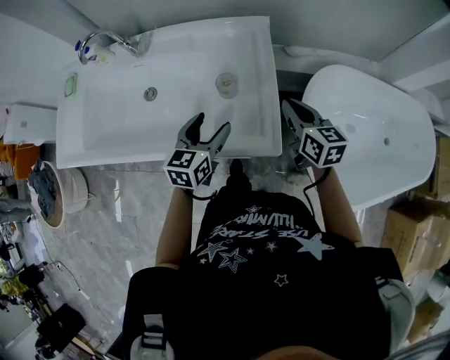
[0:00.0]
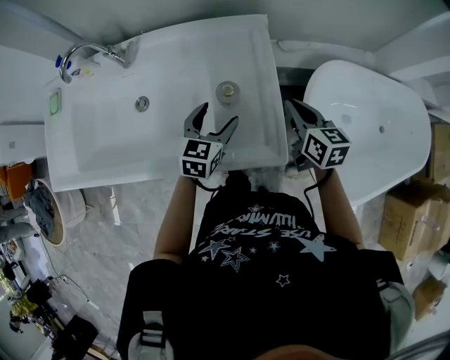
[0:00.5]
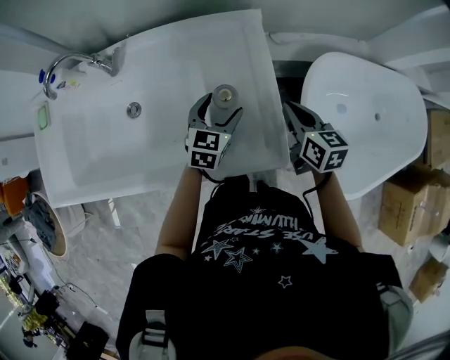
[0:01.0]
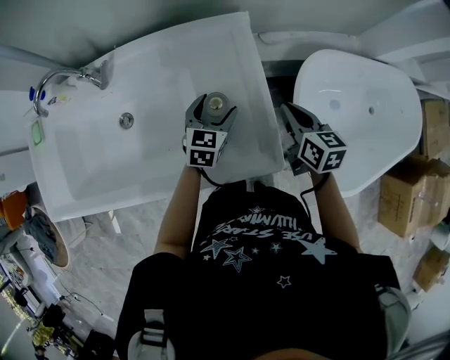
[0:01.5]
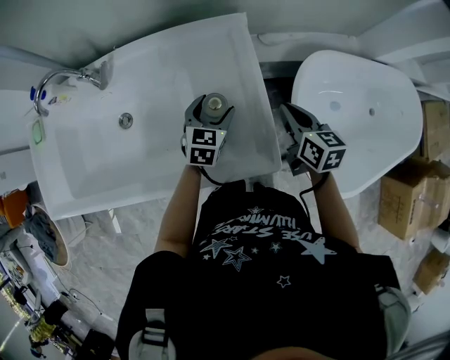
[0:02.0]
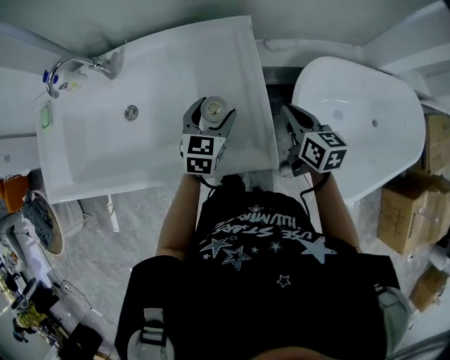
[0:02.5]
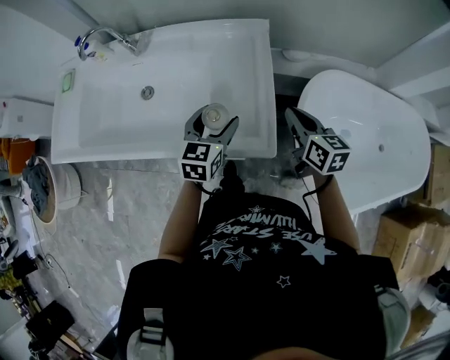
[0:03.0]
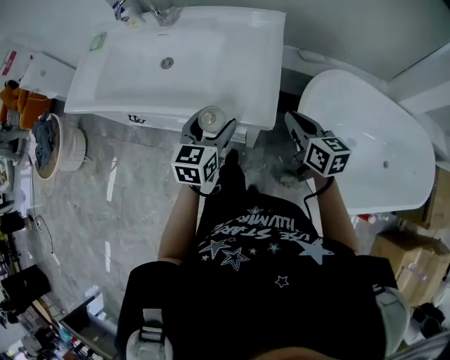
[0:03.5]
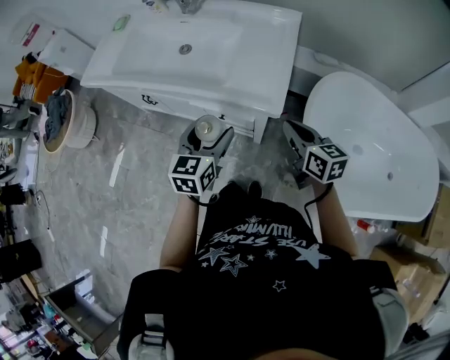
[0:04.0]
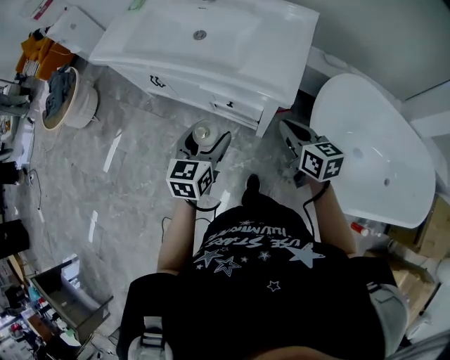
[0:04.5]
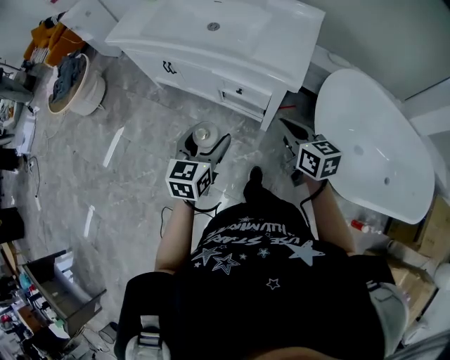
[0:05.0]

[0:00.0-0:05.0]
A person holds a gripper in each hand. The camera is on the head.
0:00.0 to 0:02.5: The left gripper heads forward, covering some 10 cm.
0:02.5 to 0:05.0: The right gripper moves roughly 40 cm, and changes its angle by approximately 40 degrees. The left gripper shifts by some 50 cm, and turns by approximately 30 degrees.

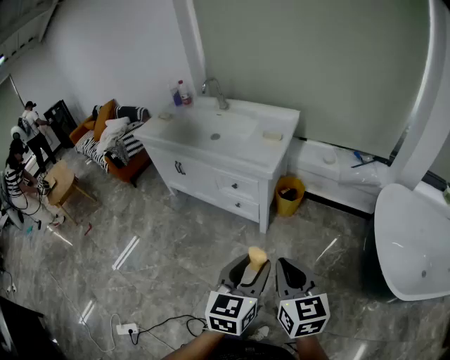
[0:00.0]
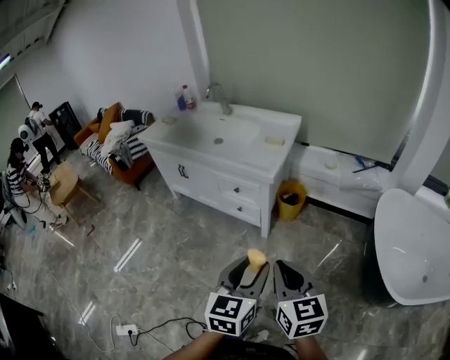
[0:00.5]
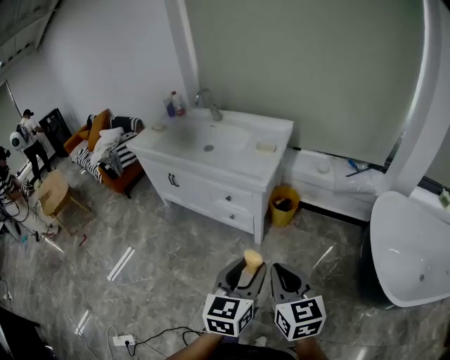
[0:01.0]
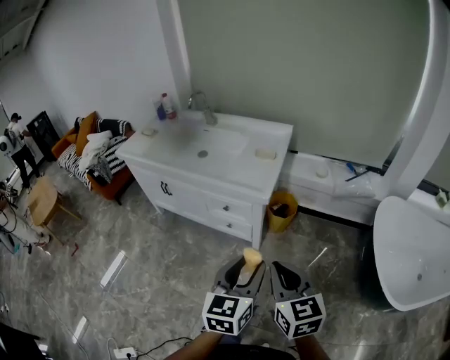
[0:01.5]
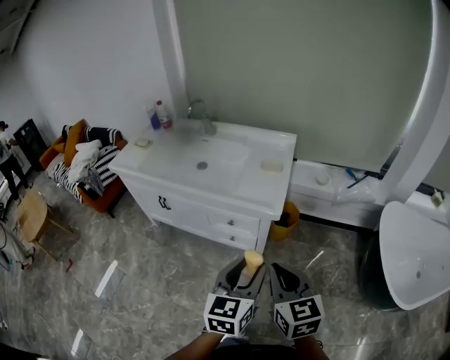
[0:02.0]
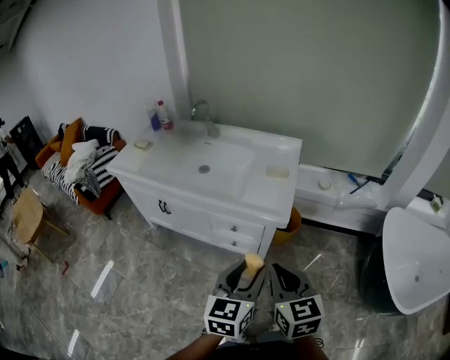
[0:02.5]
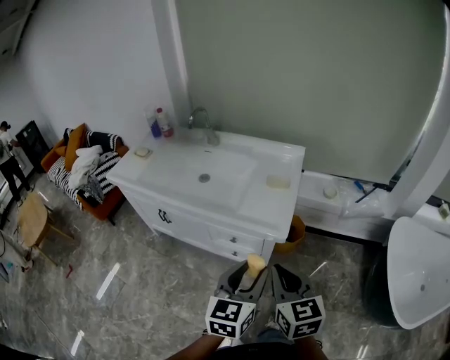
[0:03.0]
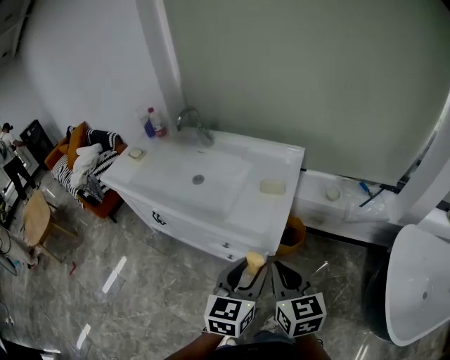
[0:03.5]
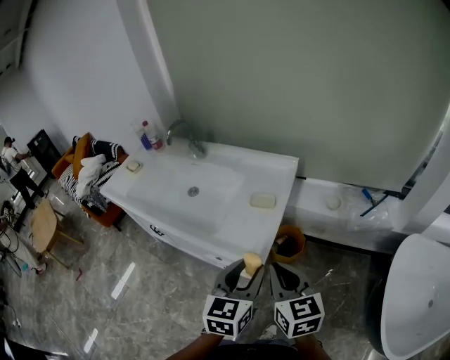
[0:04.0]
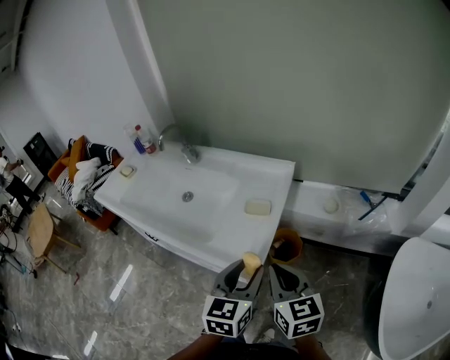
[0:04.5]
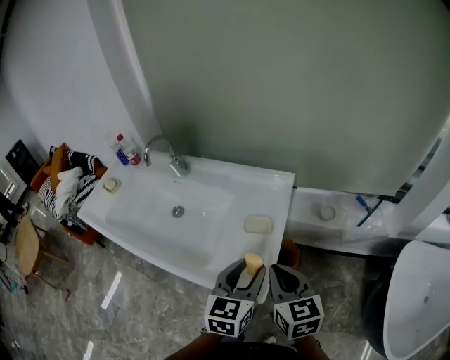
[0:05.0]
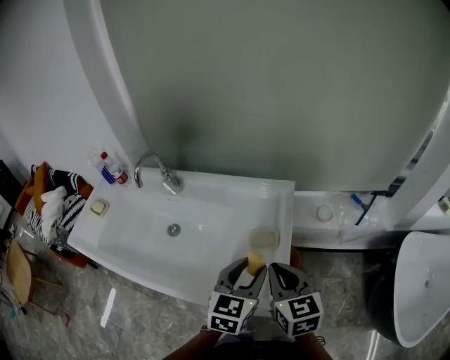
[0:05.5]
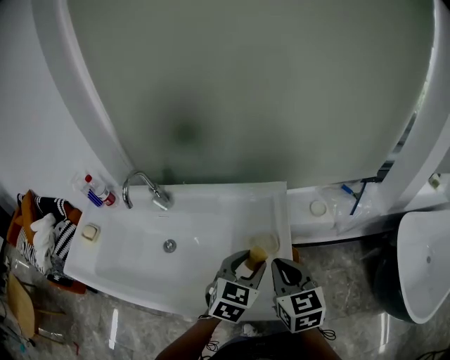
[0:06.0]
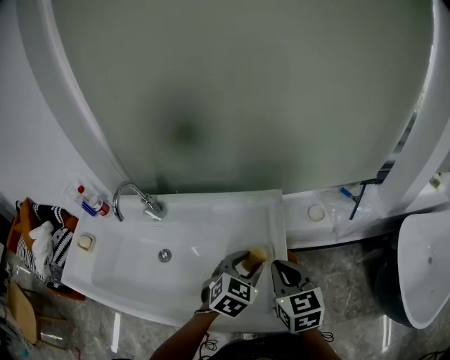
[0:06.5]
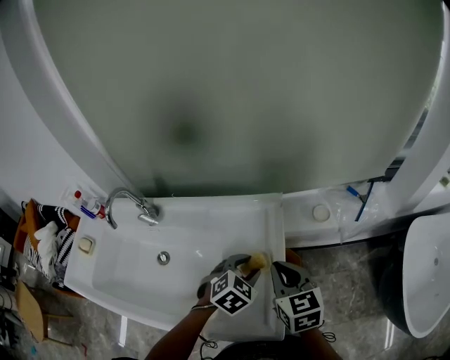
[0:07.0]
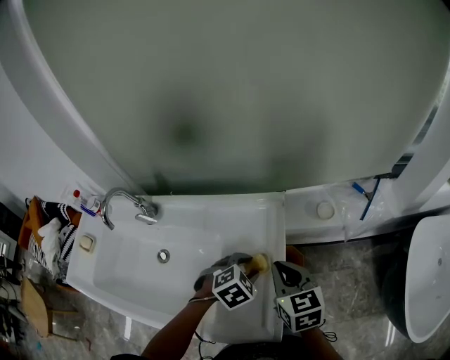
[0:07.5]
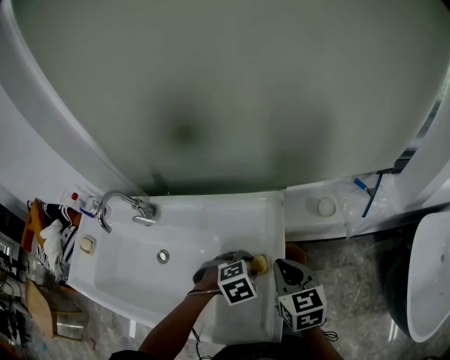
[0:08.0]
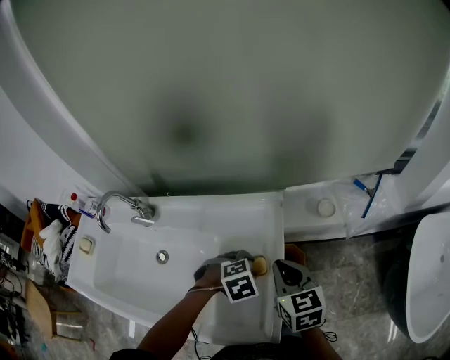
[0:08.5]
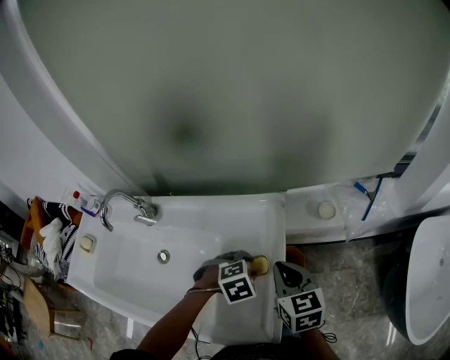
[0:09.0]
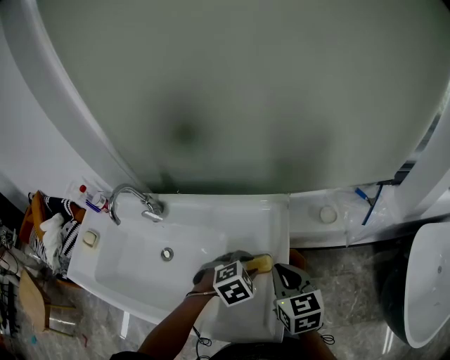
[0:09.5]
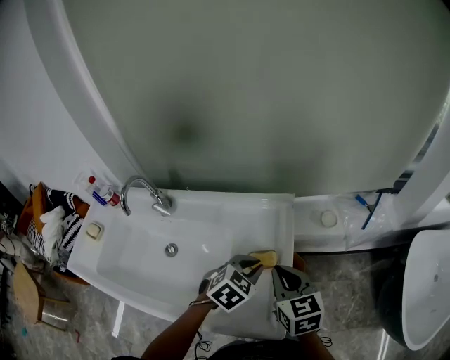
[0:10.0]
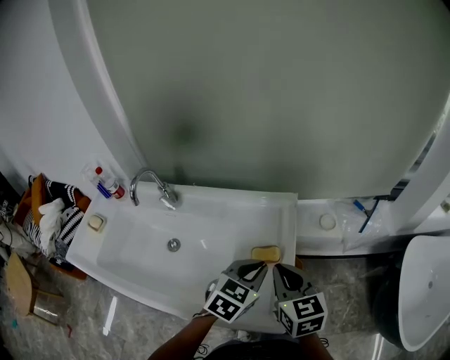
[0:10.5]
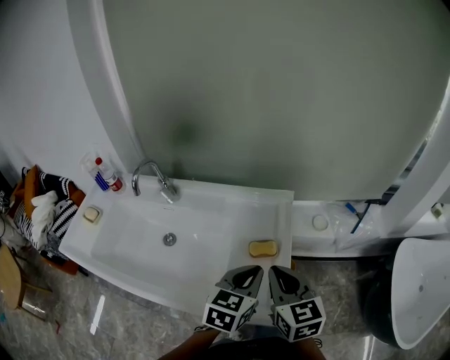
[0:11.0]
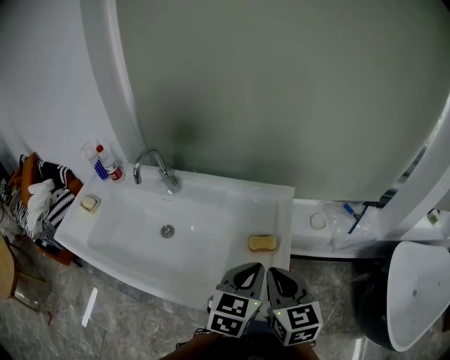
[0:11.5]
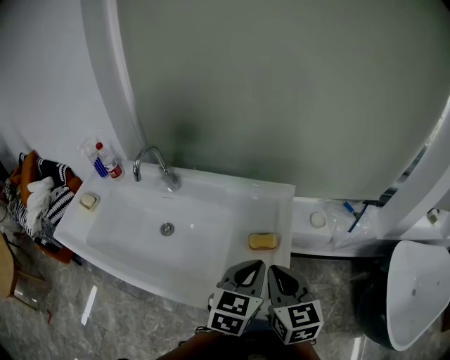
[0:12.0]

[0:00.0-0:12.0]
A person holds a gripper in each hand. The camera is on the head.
0:00.0 to 0:02.0: Both grippers move forward and to the left, approximately 20 cm.
0:02.0 to 0:04.0: The grippers both shift forward and to the right by about 25 cm.
0:04.0 to 0:06.0: Both grippers move forward, roughly 20 cm. The left gripper rotates approximately 40 degrees; the right gripper turns by approximately 20 degrees.
0:06.0 to 0:08.0: The left gripper is displaced downward and forward by approximately 15 cm, and angles its fingers downward, by roughly 40 degrees; the right gripper moves forward and downward, roughly 10 cm.
0:08.0 to 0:10.0: The right gripper changes place by roughly 5 cm. The left gripper moves upward, approximately 5 cm, swivels about 30 degrees, and closes.
0:10.0 to 0:12.0: The right gripper moves backward, about 10 cm. The left gripper is displaced backward and upward by approximately 10 cm, and rotates approximately 40 degrees.

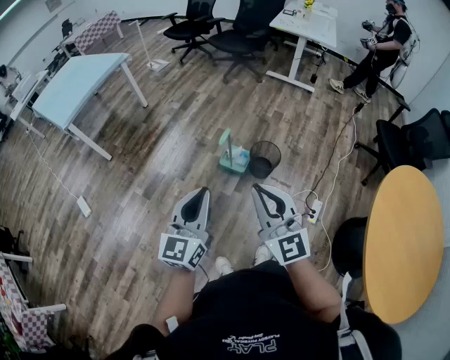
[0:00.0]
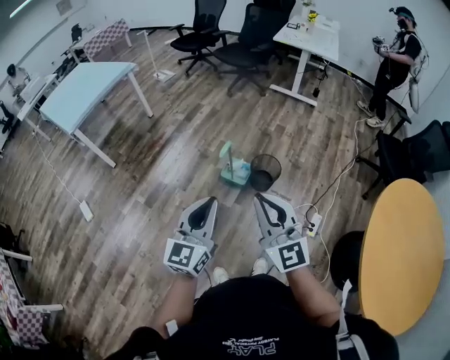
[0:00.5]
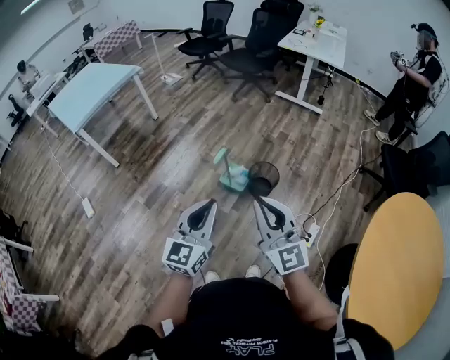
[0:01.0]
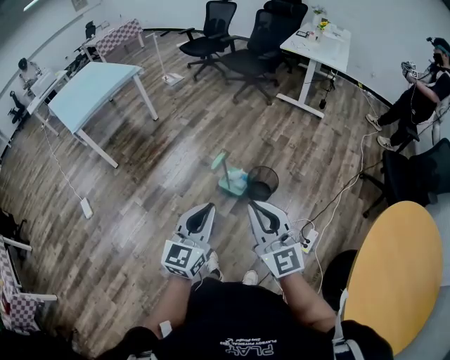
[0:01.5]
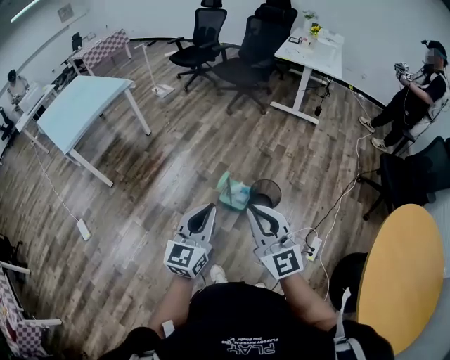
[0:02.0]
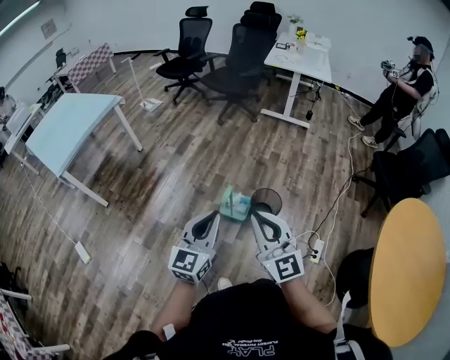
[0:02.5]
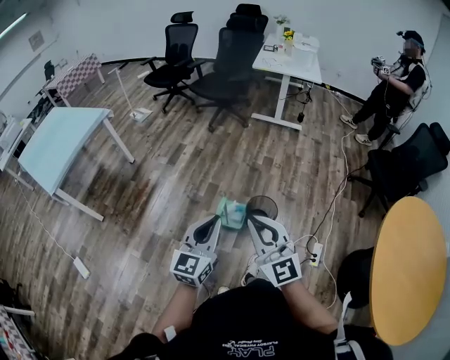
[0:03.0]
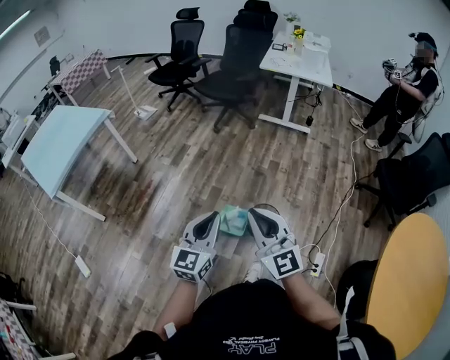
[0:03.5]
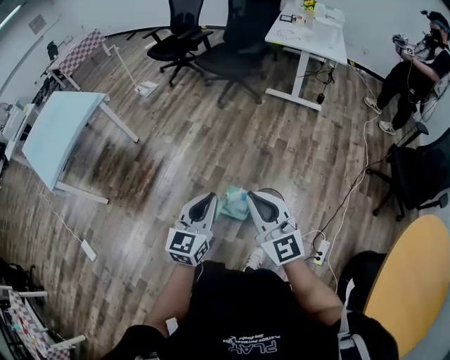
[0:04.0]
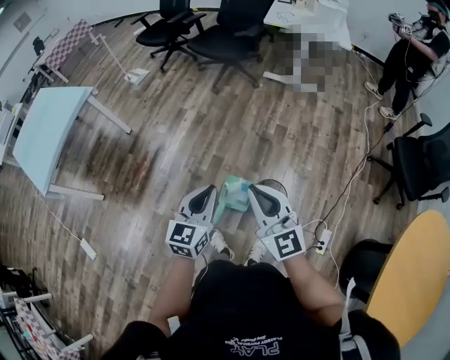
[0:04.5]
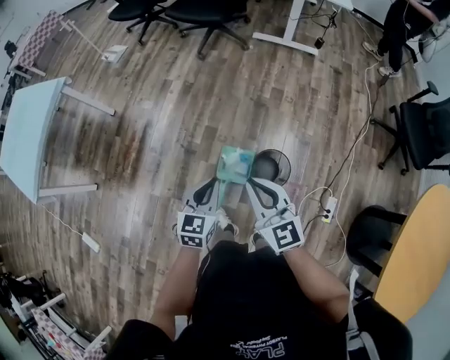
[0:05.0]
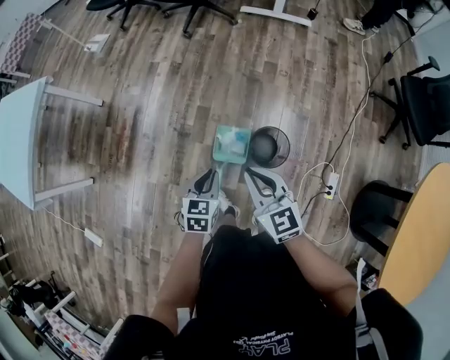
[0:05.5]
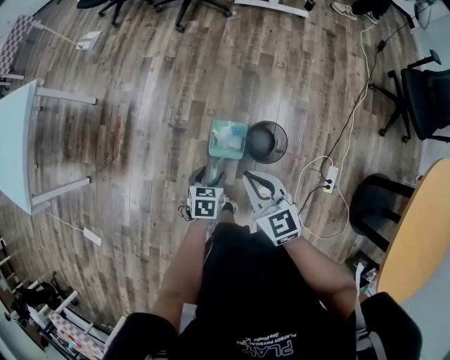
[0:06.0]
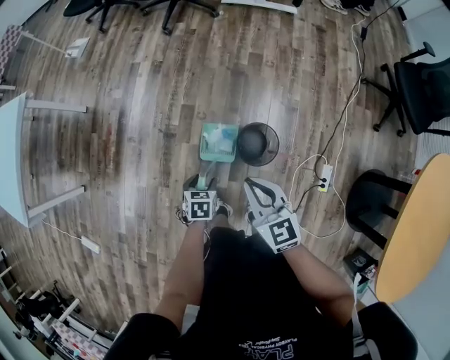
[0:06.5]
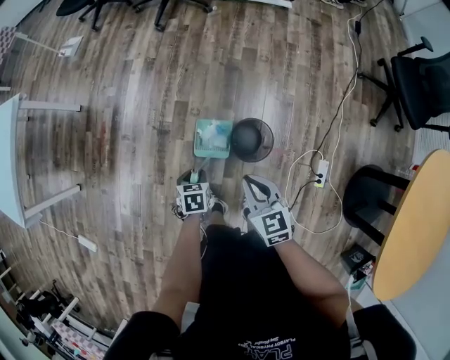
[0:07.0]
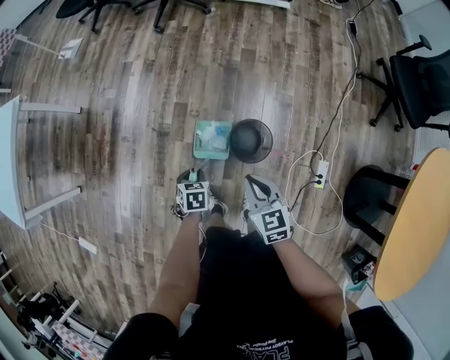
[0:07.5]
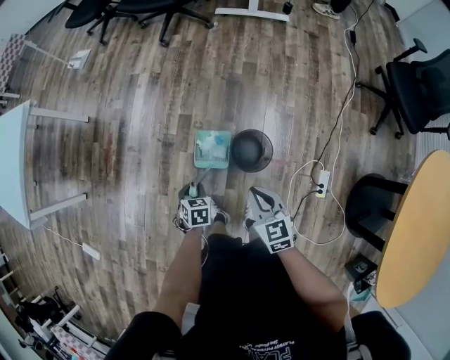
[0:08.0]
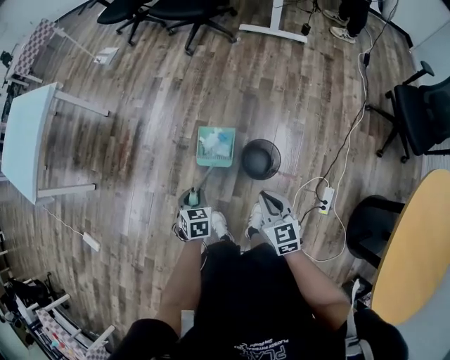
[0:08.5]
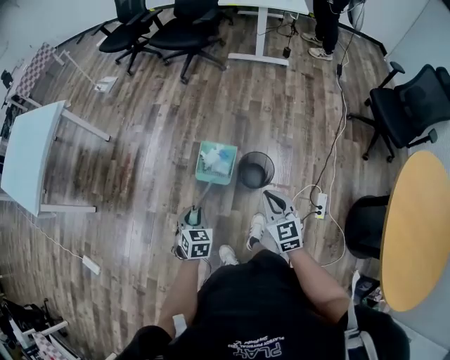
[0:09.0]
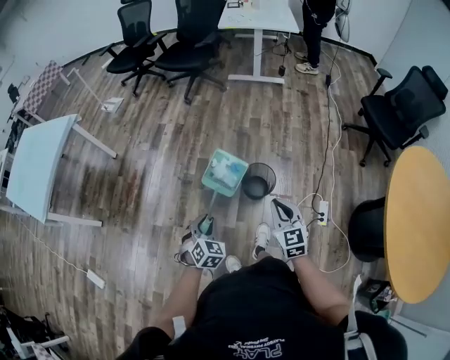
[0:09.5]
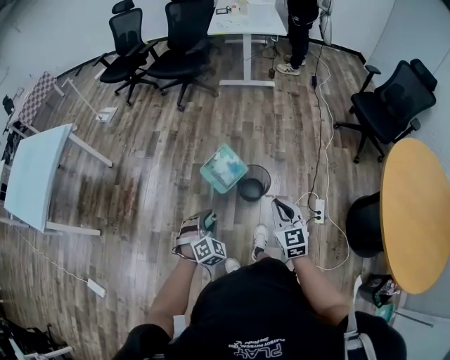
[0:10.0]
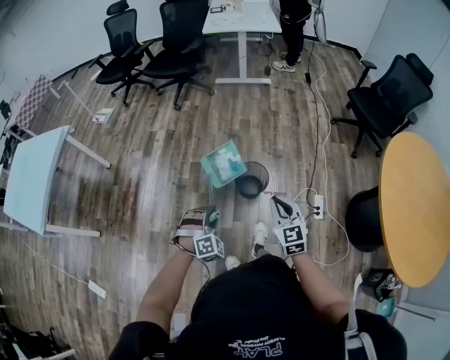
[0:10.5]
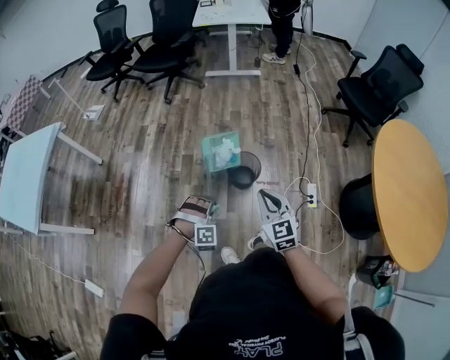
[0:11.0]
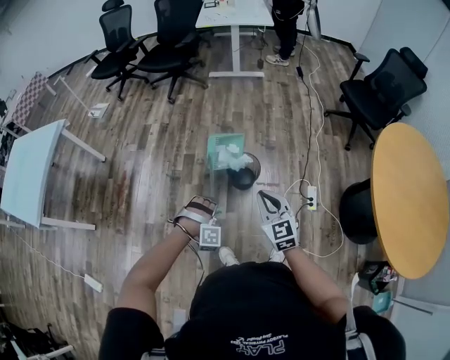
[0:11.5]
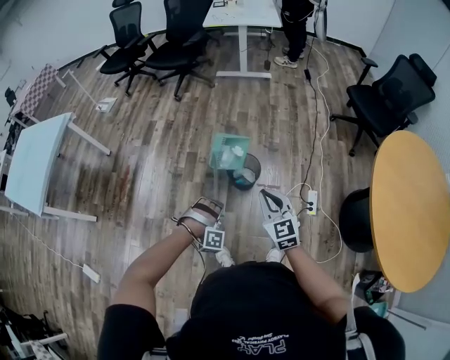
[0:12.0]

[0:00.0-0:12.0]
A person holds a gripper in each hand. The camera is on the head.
0:00.0 to 0:02.0: The two grippers go roughly 10 cm forward.
0:02.0 to 0:04.0: Both grippers move forward, some 25 cm.
0:04.0 to 0:06.0: The right gripper moves downward, approximately 25 cm, and turns by about 30 degrees, while the left gripper shifts approximately 35 cm downward, angles its fingers downward, by approximately 50 degrees, and opens.
0:06.0 to 0:08.0: The right gripper goes approximately 15 cm to the right, downward and backward. Meanwhile the left gripper closes.
0:08.0 to 0:10.0: The left gripper moves upward and backward, approximately 25 cm, and rolls clockwise, seen from behind, by some 60 degrees; the right gripper goes approximately 20 cm backward and upward, and swivels some 20 degrees.
0:10.0 to 0:12.0: The left gripper goes roughly 10 cm to the right and backward, and twists approximately 60 degrees clockwise, seen from behind.
